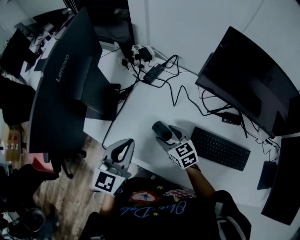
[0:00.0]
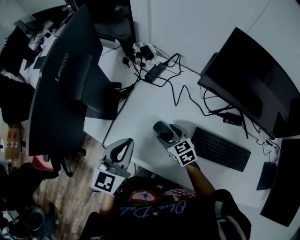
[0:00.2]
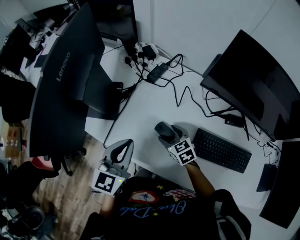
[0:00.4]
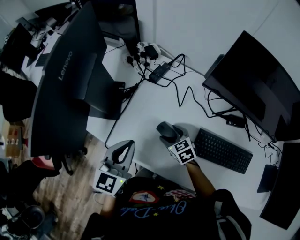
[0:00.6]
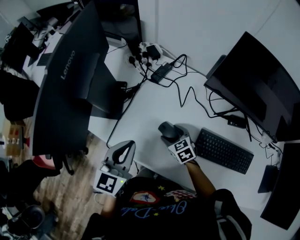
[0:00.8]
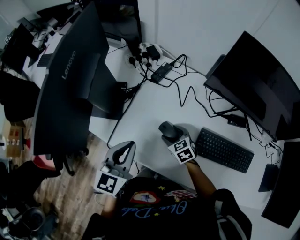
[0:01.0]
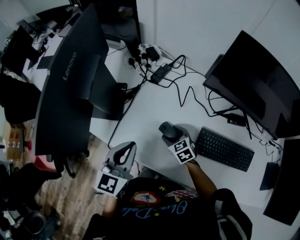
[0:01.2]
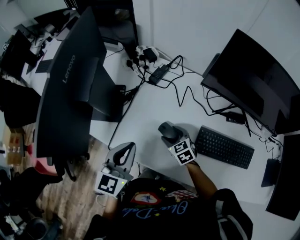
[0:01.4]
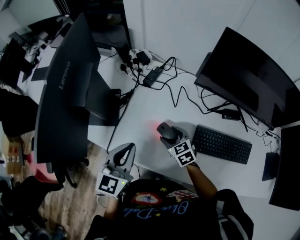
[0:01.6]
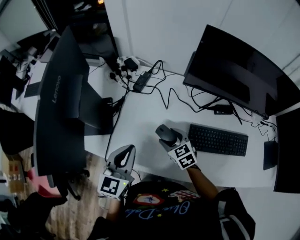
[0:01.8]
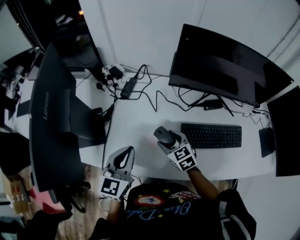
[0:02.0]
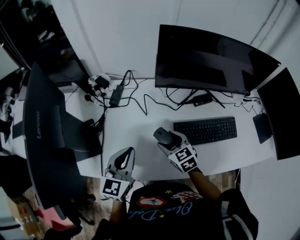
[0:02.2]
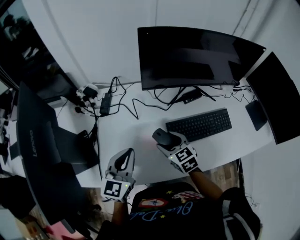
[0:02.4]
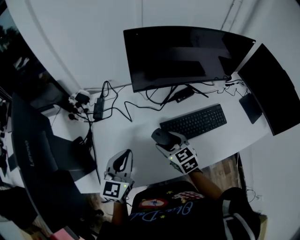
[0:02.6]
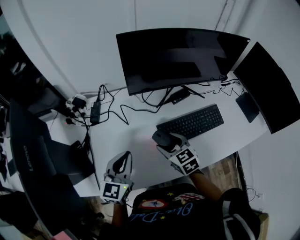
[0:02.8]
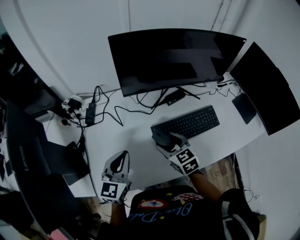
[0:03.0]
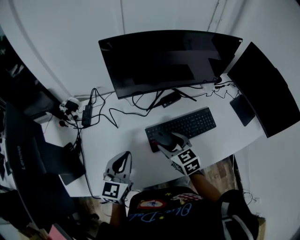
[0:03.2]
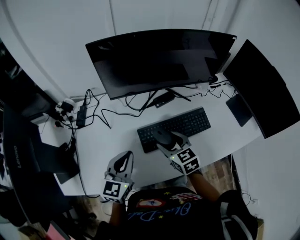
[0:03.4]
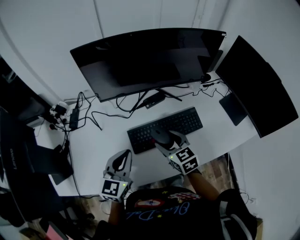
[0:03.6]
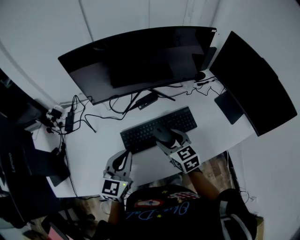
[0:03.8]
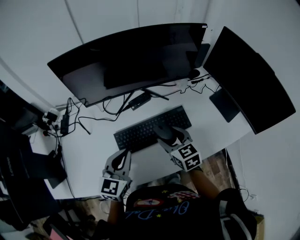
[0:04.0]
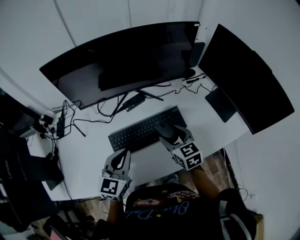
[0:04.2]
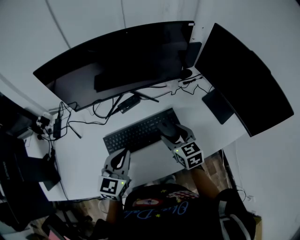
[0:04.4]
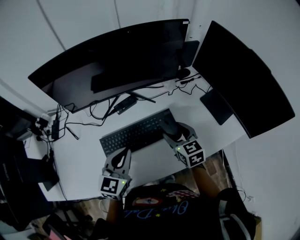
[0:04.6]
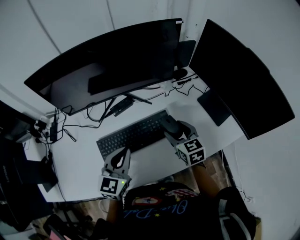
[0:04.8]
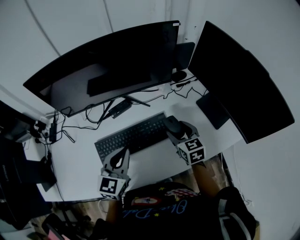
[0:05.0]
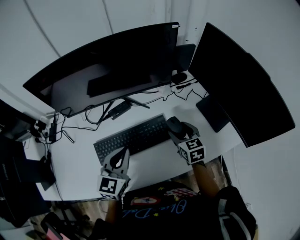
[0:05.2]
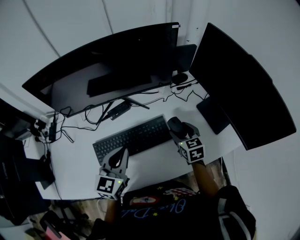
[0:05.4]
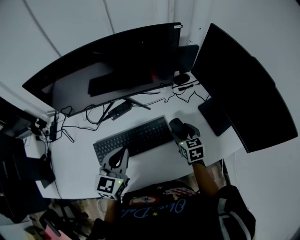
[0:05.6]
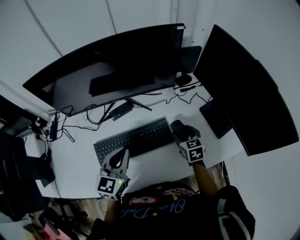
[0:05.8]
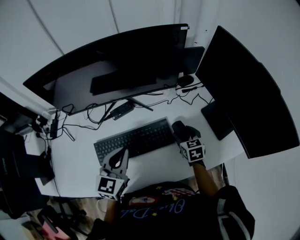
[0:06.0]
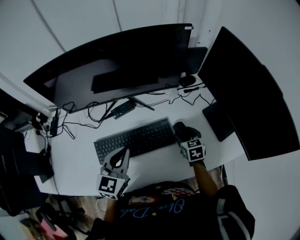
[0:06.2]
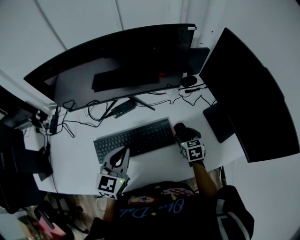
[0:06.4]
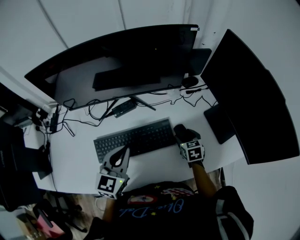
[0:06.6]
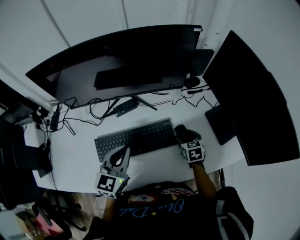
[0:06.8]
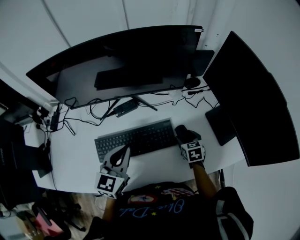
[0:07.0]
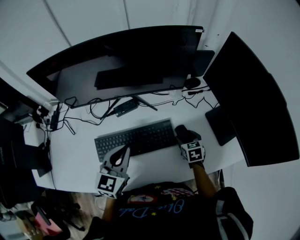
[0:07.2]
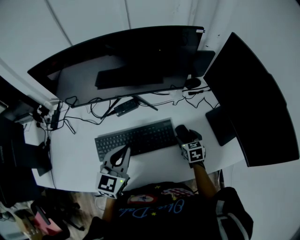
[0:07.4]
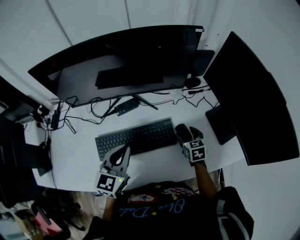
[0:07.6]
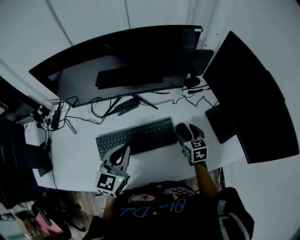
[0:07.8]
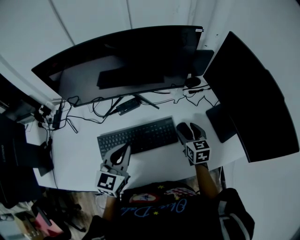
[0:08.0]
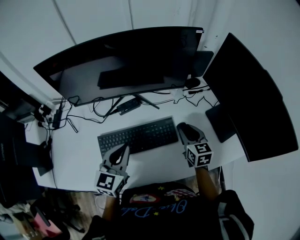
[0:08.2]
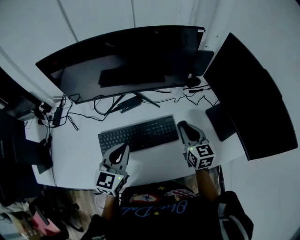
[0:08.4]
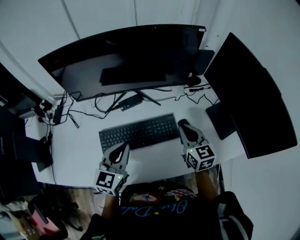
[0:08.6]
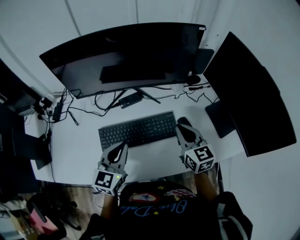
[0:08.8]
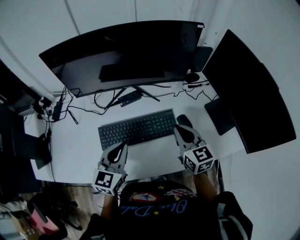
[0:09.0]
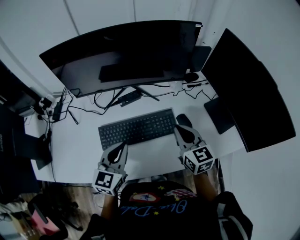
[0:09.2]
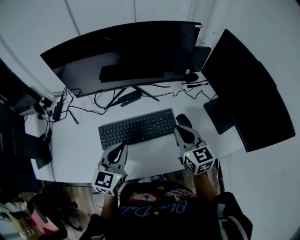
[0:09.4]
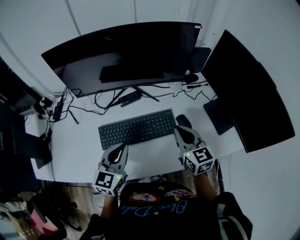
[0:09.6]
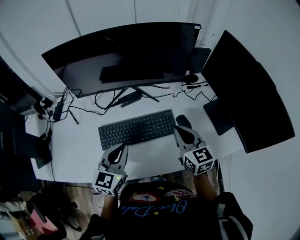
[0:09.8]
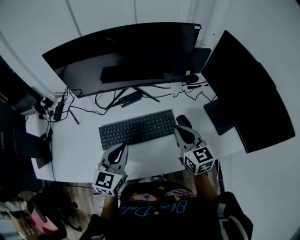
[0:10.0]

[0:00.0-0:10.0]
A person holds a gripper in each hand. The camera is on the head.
0.0 to 1.4 s: The right gripper heads downward, covering roughly 5 cm.
1.4 to 2.8 s: The right gripper shifts by about 20 cm, and rotates approximately 40 degrees. The left gripper changes place by about 15 cm, and rotates approximately 30 degrees.
2.8 to 4.2 s: Both grippers travel together to the right, approximately 25 cm.
4.2 to 5.8 s: The right gripper is displaced to the right, downward and forward by about 20 cm. The left gripper goes approximately 10 cm to the right and forward.
5.8 to 7.2 s: The right gripper travels downward by roughly 5 cm.
7.2 to 8.6 s: The right gripper shifts about 20 cm upward, turns by approximately 30 degrees, and closes up.
8.6 to 10.0 s: The right gripper changes place by approximately 5 cm.

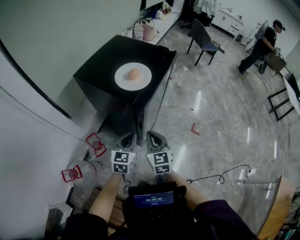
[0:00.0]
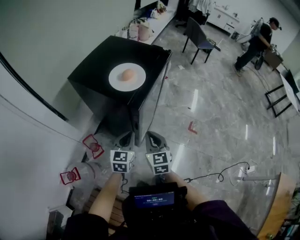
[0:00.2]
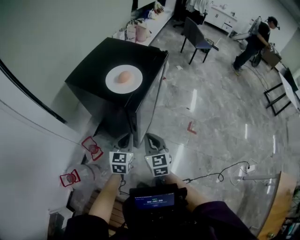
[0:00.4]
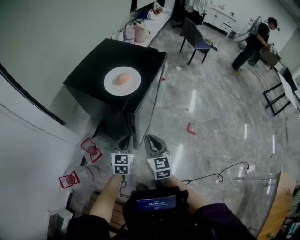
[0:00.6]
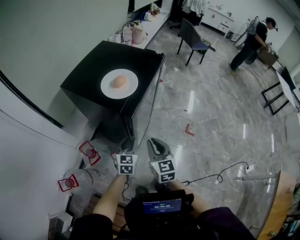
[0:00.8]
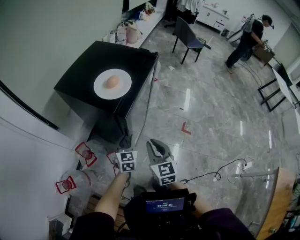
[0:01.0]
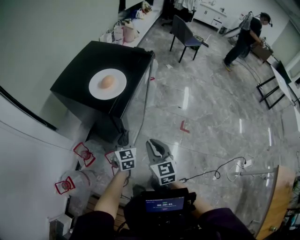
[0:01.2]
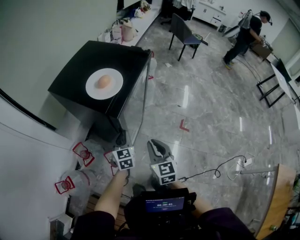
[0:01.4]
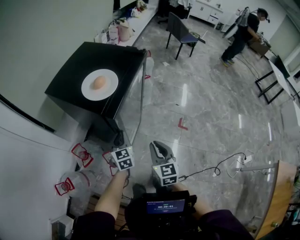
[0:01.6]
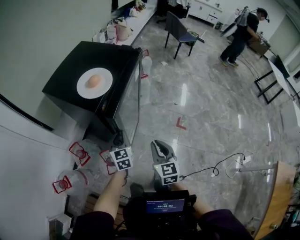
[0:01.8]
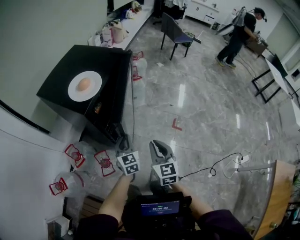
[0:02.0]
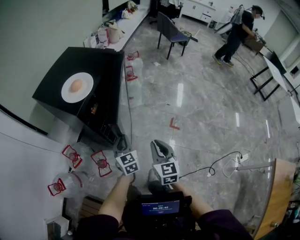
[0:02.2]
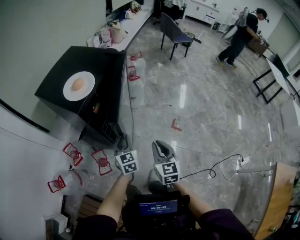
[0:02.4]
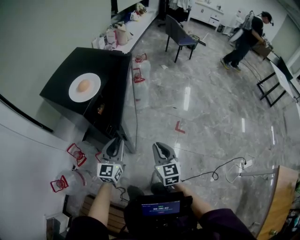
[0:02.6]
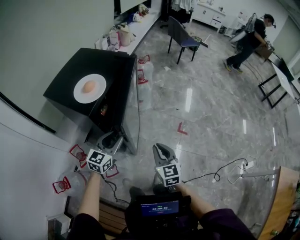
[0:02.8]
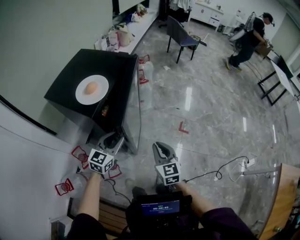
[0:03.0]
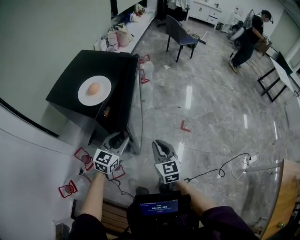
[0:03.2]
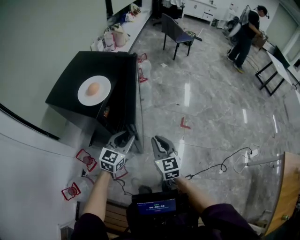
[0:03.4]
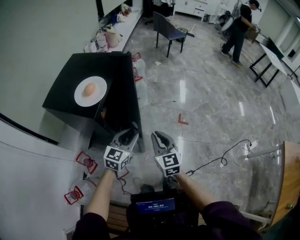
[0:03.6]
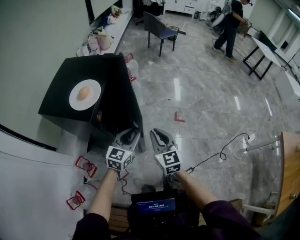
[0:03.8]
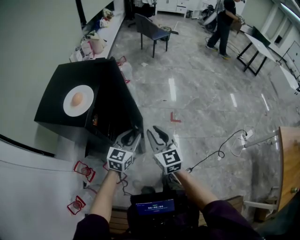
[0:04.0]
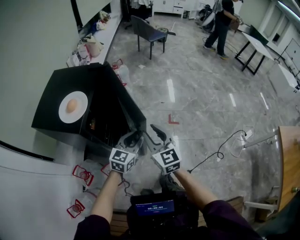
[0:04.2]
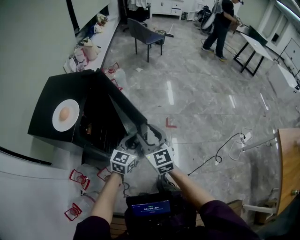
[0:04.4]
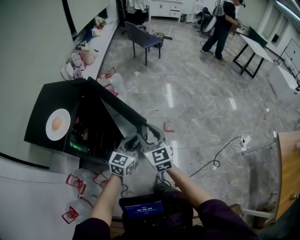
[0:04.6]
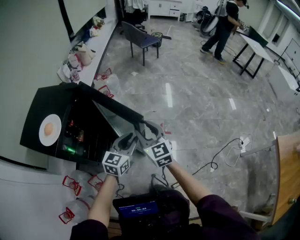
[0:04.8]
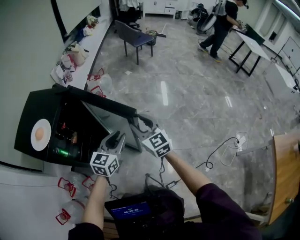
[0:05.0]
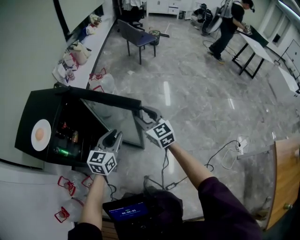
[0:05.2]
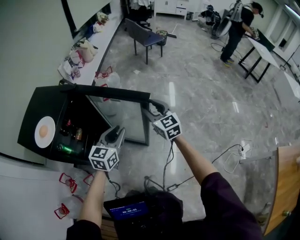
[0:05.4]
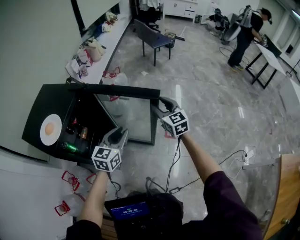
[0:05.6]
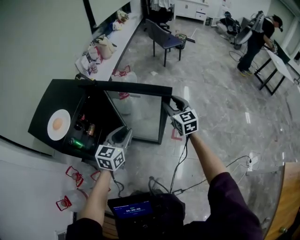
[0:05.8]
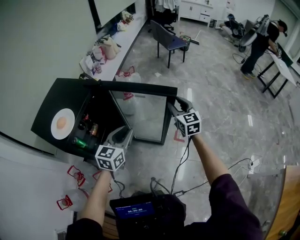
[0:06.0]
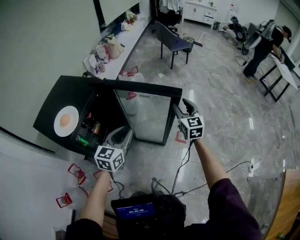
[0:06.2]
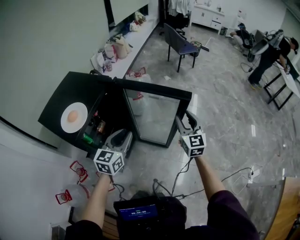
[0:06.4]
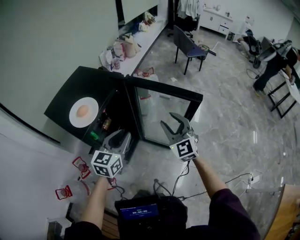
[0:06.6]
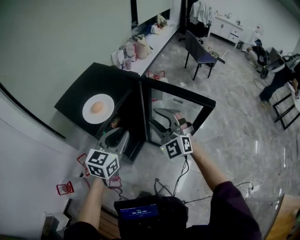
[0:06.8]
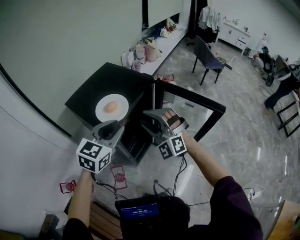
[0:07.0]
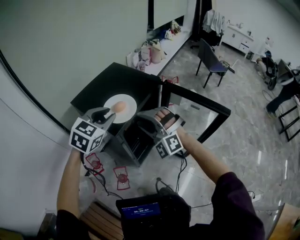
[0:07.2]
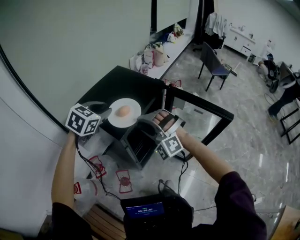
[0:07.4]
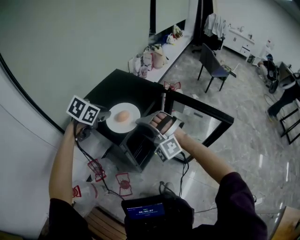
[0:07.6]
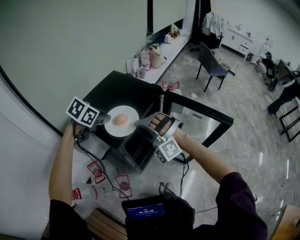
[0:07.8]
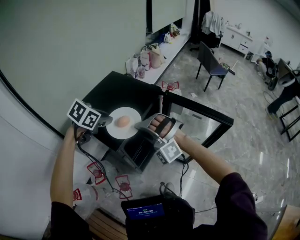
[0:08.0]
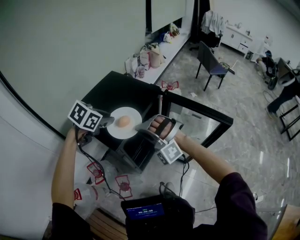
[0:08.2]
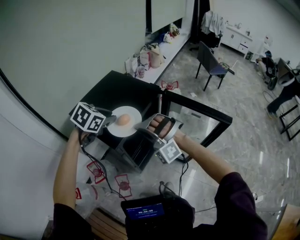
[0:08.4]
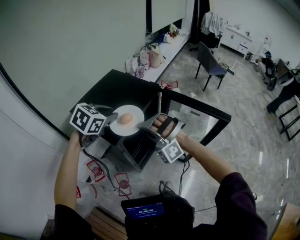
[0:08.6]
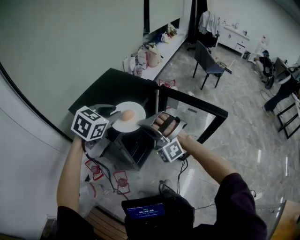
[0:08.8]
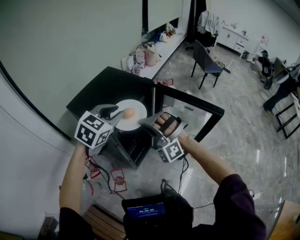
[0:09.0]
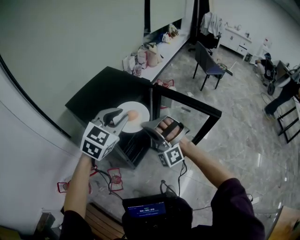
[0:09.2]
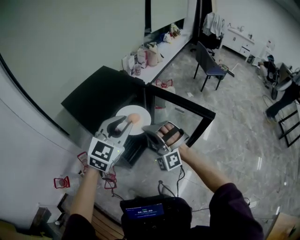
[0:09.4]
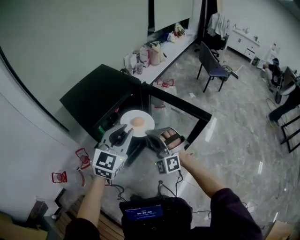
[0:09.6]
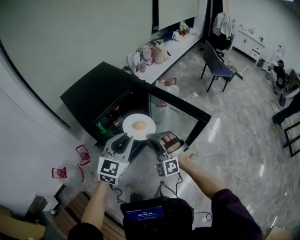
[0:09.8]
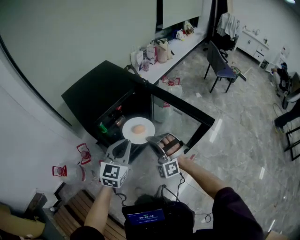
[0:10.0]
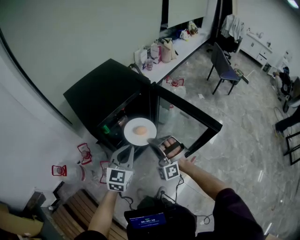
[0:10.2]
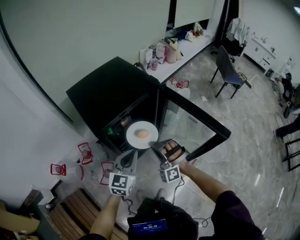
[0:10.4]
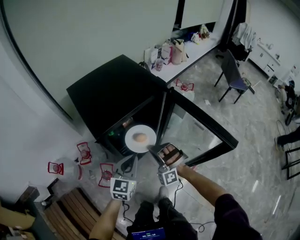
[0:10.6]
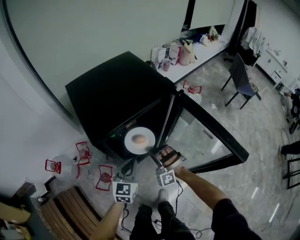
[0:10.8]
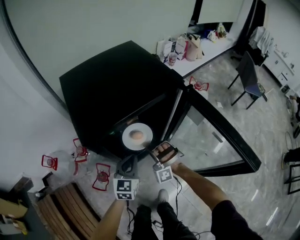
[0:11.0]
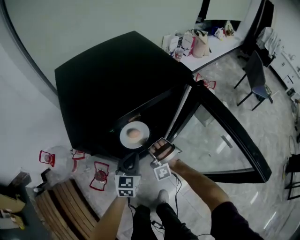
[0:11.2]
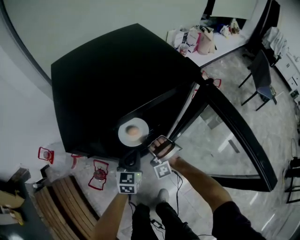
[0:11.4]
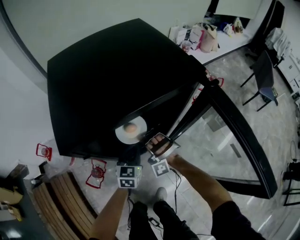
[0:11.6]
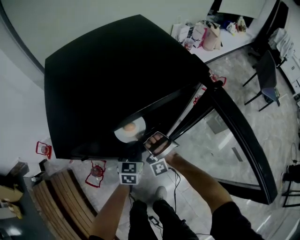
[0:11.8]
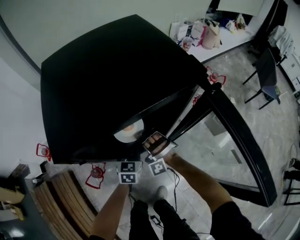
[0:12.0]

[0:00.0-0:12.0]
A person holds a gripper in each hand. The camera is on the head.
0.0 to 1.6 s: The left gripper travels downward and forward by approximately 10 cm. Meanwhile the right gripper heads to the right, covering some 10 cm.
1.6 to 3.0 s: The right gripper heads to the right, covering roughly 5 cm. The left gripper is displaced upward by approximately 10 cm, and turns by about 40 degrees.
3.0 to 4.4 s: The right gripper travels upward and forward by roughly 10 cm, and opens, while the left gripper travels to the right by about 20 cm.
4.4 to 6.0 s: The left gripper travels forward and upward by approximately 15 cm. Meanwhile the right gripper travels forward and to the right by roughly 30 cm.
6.0 to 7.6 s: The left gripper changes place by approximately 40 cm, and tilts its fingers about 30 degrees downward. Meanwhile the right gripper changes place by roughly 50 cm, and rolls counterclockwise, seen from behind, by roughly 90 degrees.
7.6 to 9.0 s: The right gripper heads to the right, covering roughly 5 cm, and closes its fingers. The left gripper is displaced to the right and backward by about 15 cm, and swivels roughly 30 degrees.
9.0 to 10.4 s: The left gripper goes approximately 20 cm downward, backward and to the right, swivels some 40 degrees, and closes. Meanwhile the right gripper shifts some 15 cm downward and to the right.
10.4 to 12.0 s: The grippers both shift downward and forward by about 30 cm. The right gripper turns by about 20 degrees. Meanwhile the left gripper rotates roughly 30 degrees.

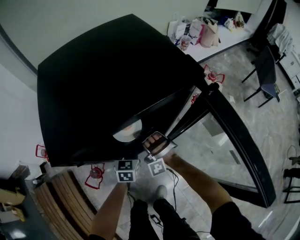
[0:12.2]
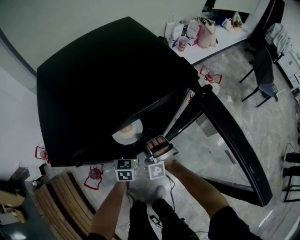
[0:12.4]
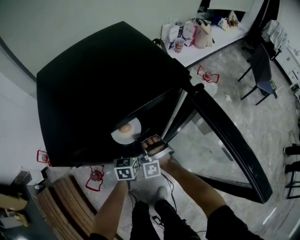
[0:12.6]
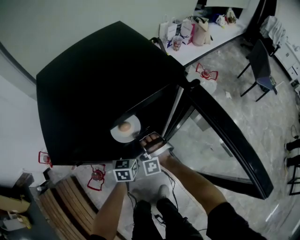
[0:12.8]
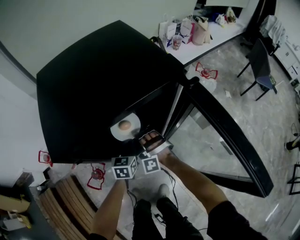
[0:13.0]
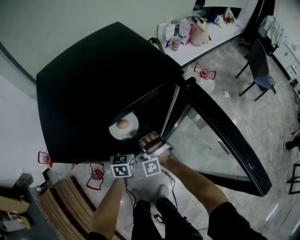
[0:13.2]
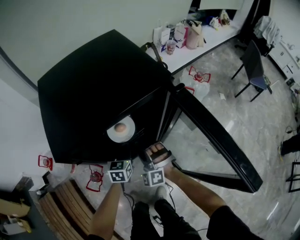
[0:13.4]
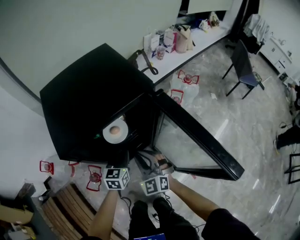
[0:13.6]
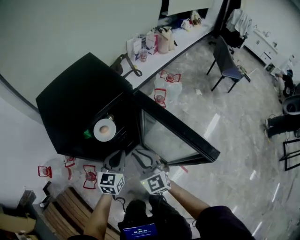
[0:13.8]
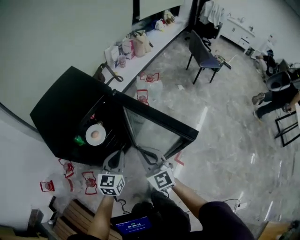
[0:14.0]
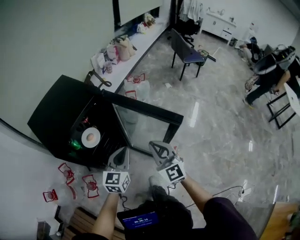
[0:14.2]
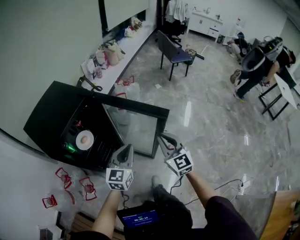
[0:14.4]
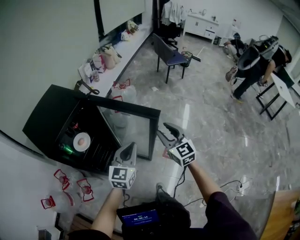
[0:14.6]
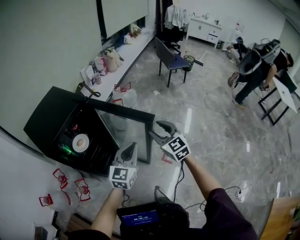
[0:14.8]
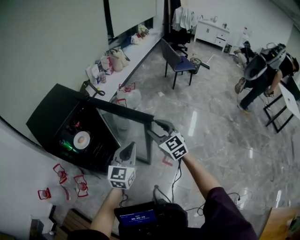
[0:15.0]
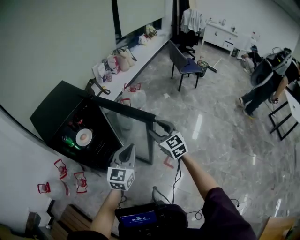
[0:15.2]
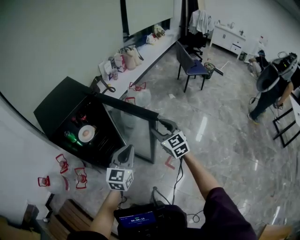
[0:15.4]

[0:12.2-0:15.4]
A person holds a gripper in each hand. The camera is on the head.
12.2 to 13.8 s: Both grippers move upward, backward and to the right, about 25 cm. The right gripper rotates around the line of its fingers by some 80 degrees, clockwise from behind, while the left gripper swivels about 20 degrees.
13.8 to 15.4 s: The right gripper moves approximately 30 cm, and opens. Meanwhile the left gripper shifts by some 30 cm.
